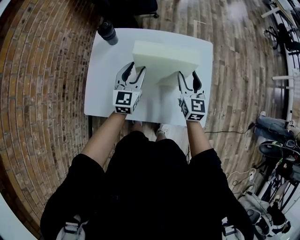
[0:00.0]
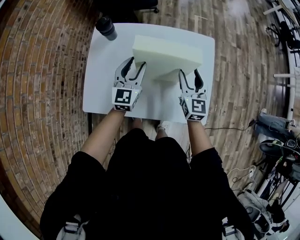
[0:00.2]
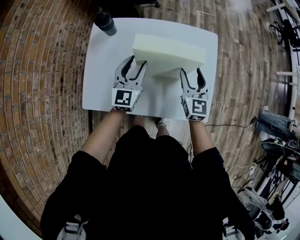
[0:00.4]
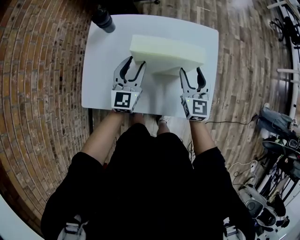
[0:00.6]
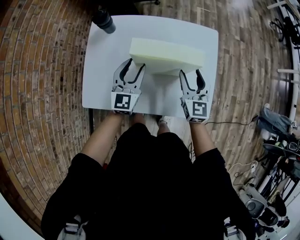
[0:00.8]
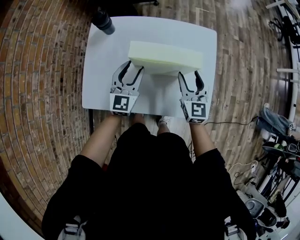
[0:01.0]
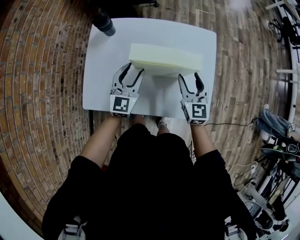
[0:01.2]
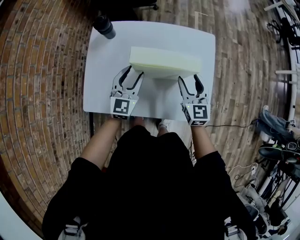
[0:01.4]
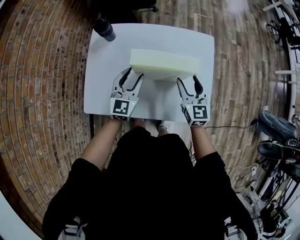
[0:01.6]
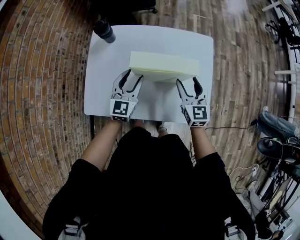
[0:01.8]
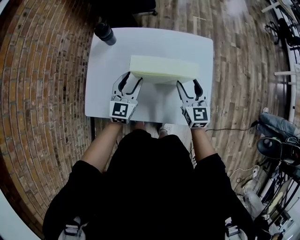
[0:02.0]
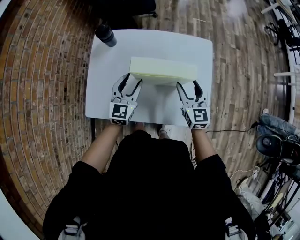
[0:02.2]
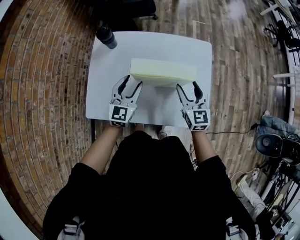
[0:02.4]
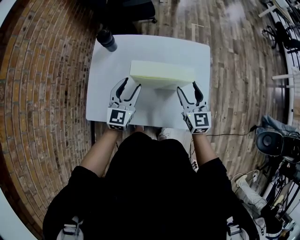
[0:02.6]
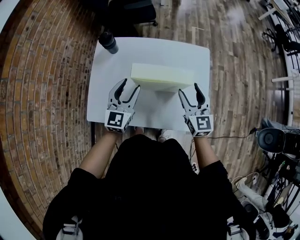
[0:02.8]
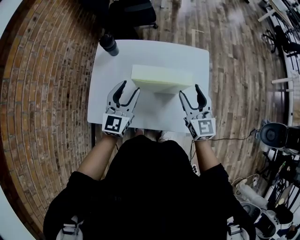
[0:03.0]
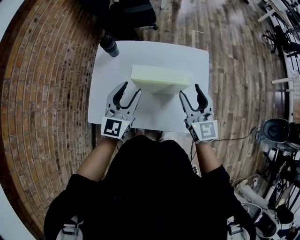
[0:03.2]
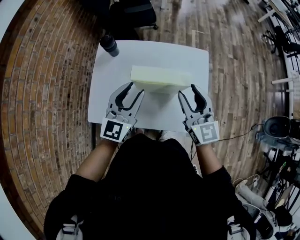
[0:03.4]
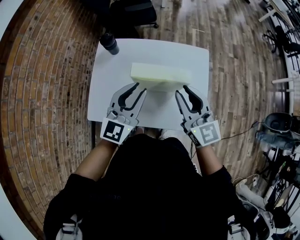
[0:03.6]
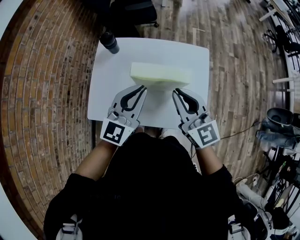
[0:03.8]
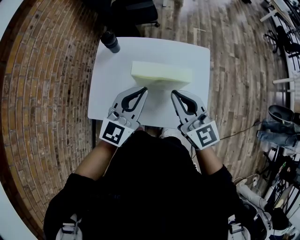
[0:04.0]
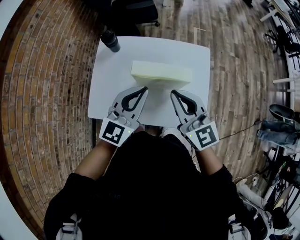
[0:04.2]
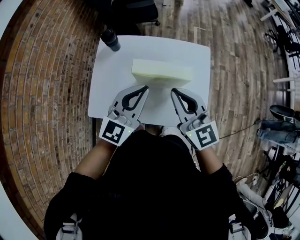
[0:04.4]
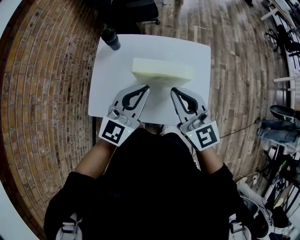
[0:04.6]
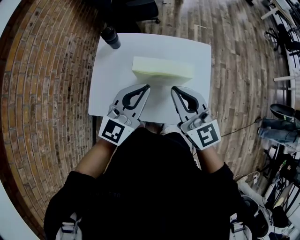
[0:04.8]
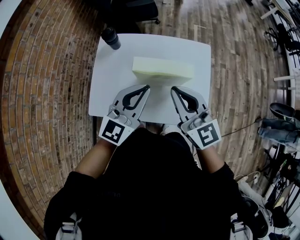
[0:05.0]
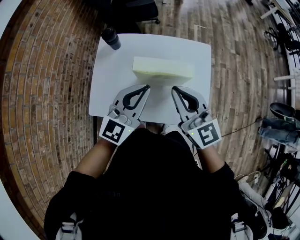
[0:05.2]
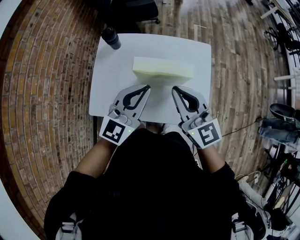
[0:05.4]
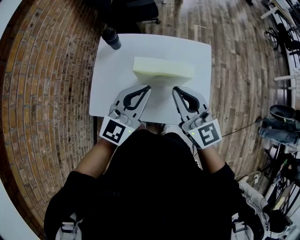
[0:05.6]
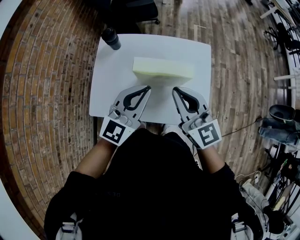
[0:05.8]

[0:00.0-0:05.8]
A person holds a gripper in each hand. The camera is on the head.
0:00.0 to 0:01.4: The grippers make only small movements.
0:01.4 to 0:02.8: The left gripper shifts by some 5 cm. Meanwhile the right gripper is displaced upward by some 5 cm.
0:02.8 to 0:04.4: The left gripper travels upward, to the right and backward by some 15 cm, and closes. Meanwhile the right gripper shifts roughly 15 cm upward and to the left, swivels approximately 20 degrees, and closes.
0:04.4 to 0:05.8: The two grippers keep their place.

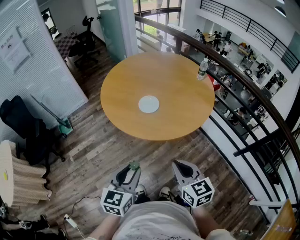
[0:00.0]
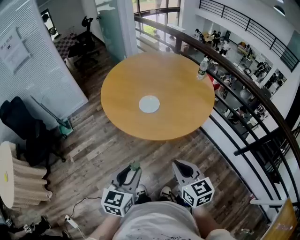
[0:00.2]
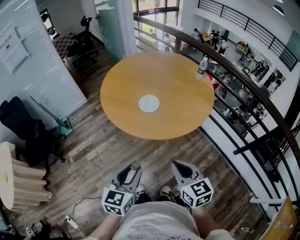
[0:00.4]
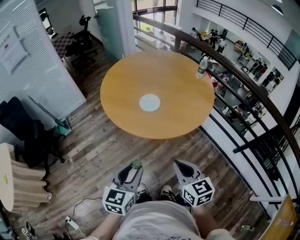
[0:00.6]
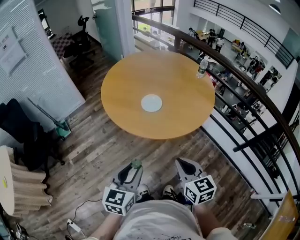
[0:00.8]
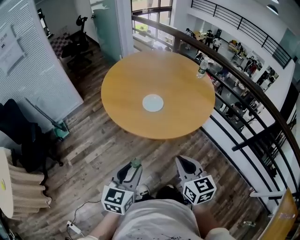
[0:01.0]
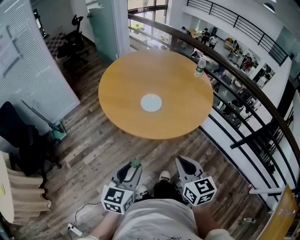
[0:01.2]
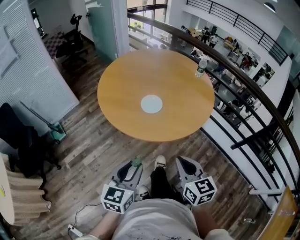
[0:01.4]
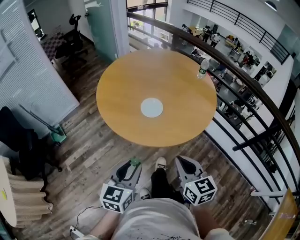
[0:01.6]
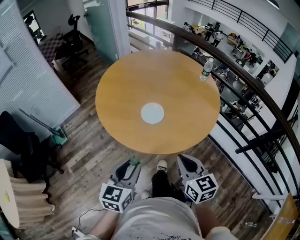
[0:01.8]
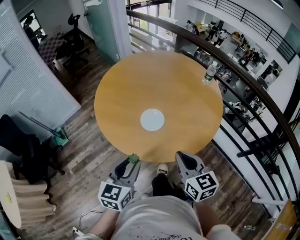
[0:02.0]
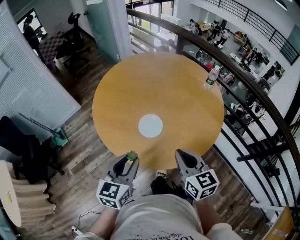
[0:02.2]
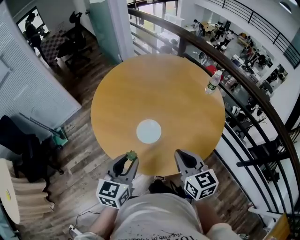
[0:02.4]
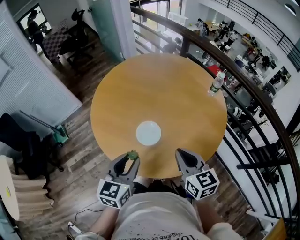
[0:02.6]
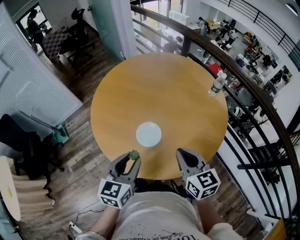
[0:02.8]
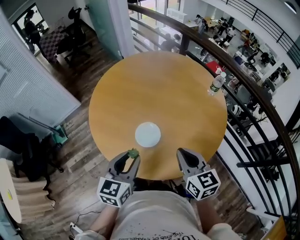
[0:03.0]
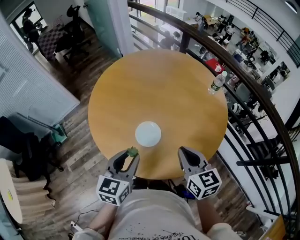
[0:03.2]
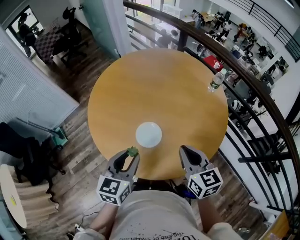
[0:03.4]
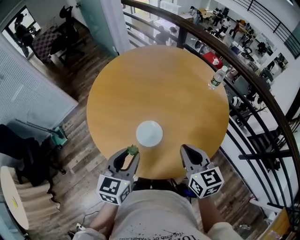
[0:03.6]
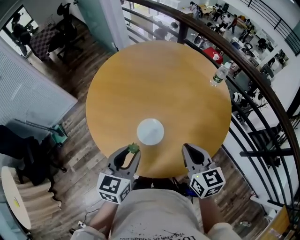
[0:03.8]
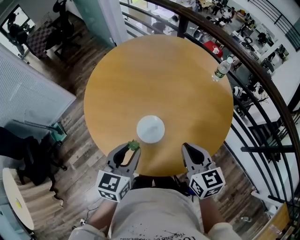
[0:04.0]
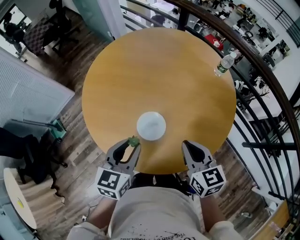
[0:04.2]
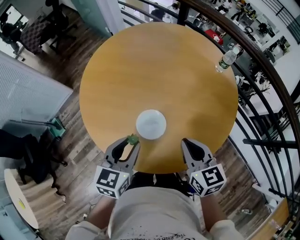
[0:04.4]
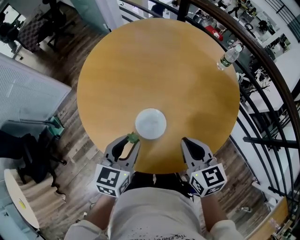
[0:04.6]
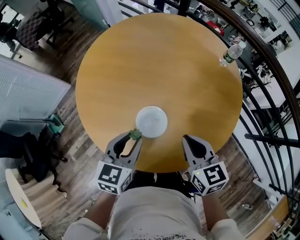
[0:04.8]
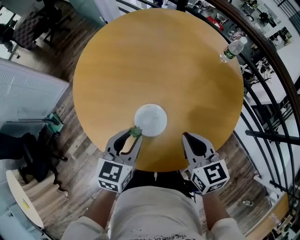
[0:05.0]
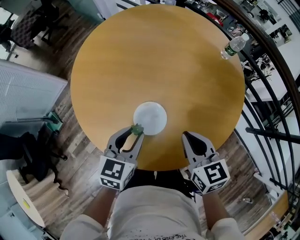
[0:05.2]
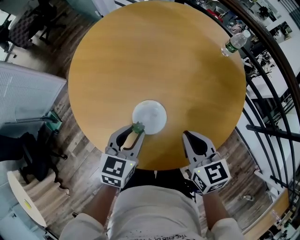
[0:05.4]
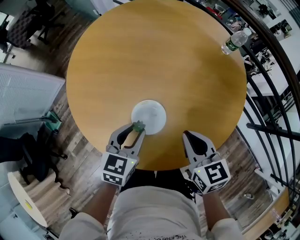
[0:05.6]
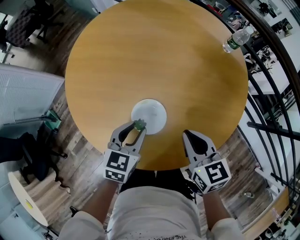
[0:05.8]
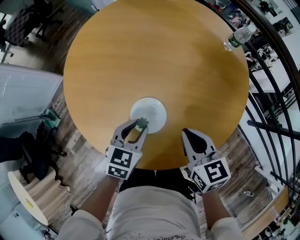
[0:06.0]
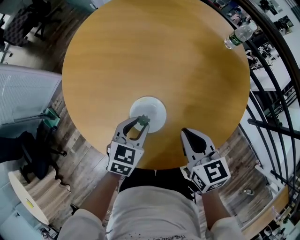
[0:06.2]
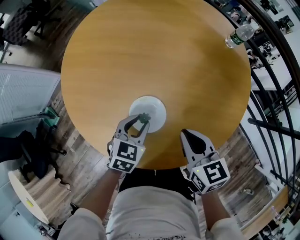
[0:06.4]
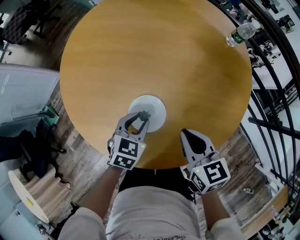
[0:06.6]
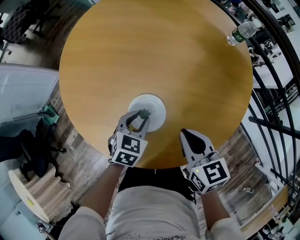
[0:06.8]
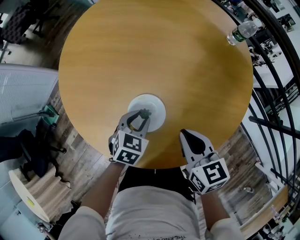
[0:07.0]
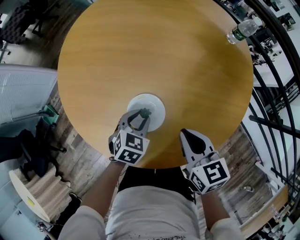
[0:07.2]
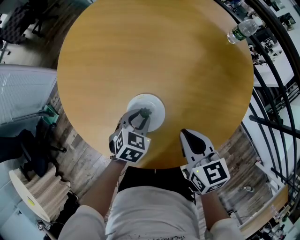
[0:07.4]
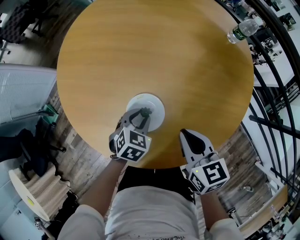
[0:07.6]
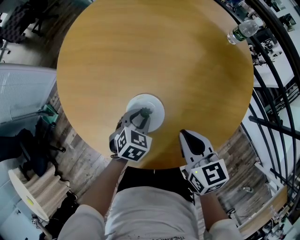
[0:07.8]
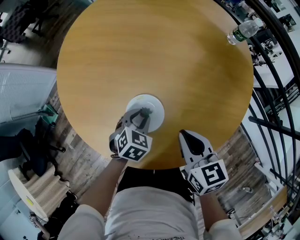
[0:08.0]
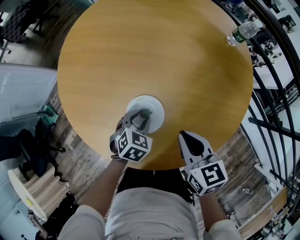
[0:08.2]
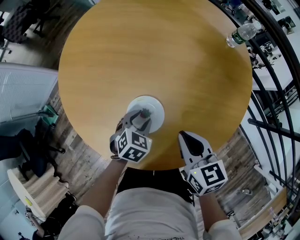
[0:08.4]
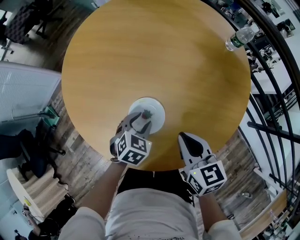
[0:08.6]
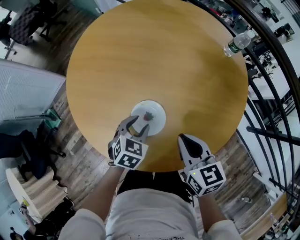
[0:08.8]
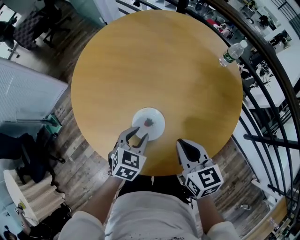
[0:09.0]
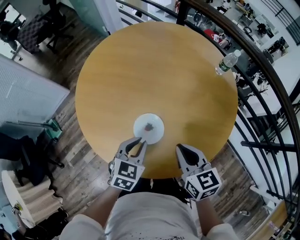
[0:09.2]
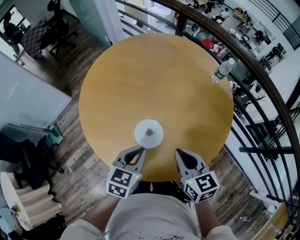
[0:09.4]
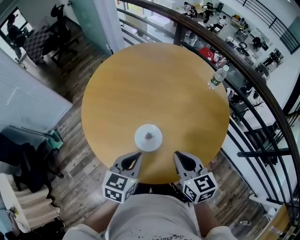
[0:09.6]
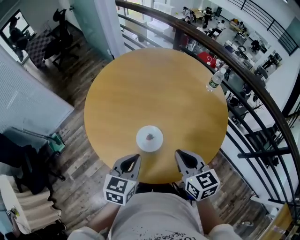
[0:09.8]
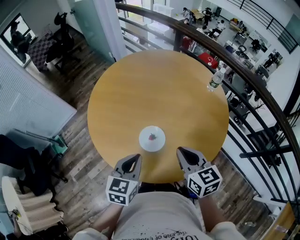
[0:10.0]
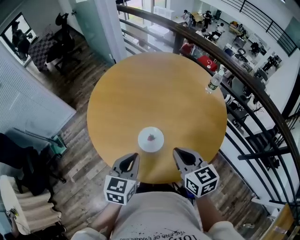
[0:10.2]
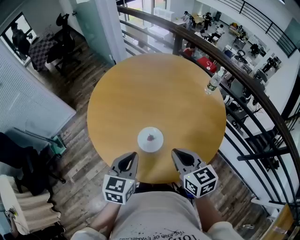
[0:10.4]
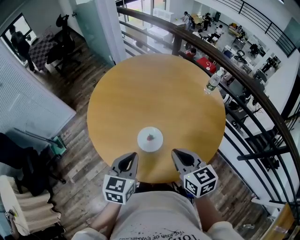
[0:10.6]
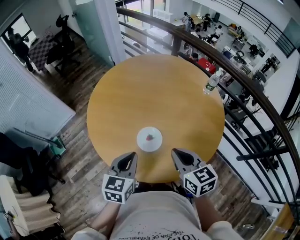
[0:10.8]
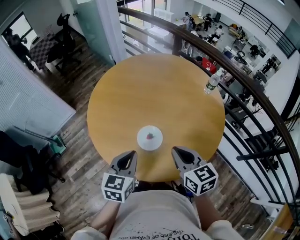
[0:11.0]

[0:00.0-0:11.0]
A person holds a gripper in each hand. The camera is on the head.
0:00.0 to 0:01.6: The grippers both shift forward and to the left by roughly 10 cm.
0:01.6 to 0:03.2: Both grippers move forward, about 25 cm.
0:03.2 to 0:04.8: The right gripper moves downward and forward, roughly 10 cm; the left gripper goes about 10 cm forward and downward.
0:04.8 to 0:06.2: The right gripper goes approximately 5 cm downward; the left gripper goes roughly 10 cm downward.
0:06.2 to 0:07.8: The left gripper travels downward by about 10 cm.
0:07.8 to 0:09.4: The left gripper shifts about 20 cm upward, turns by roughly 30 degrees, and closes its fingers. Meanwhile the right gripper goes about 10 cm upward.
0:09.4 to 0:11.0: The two grippers go some 5 cm upward.

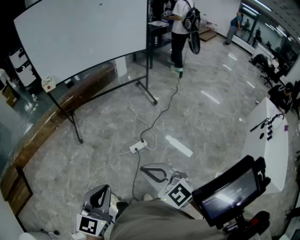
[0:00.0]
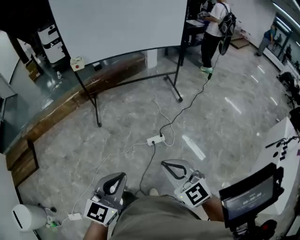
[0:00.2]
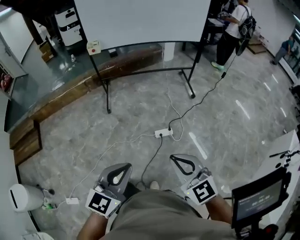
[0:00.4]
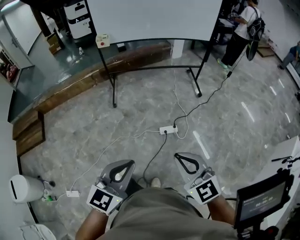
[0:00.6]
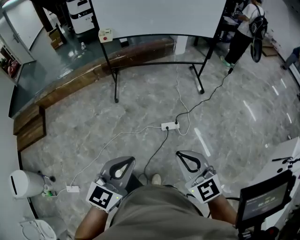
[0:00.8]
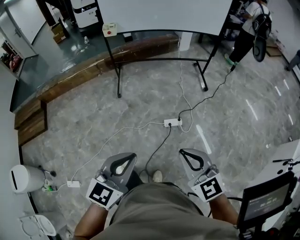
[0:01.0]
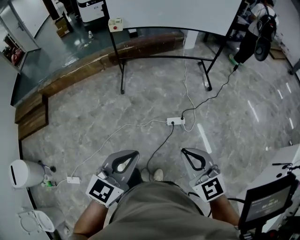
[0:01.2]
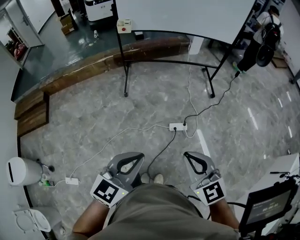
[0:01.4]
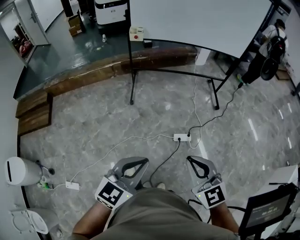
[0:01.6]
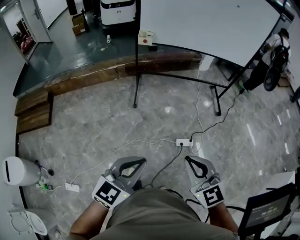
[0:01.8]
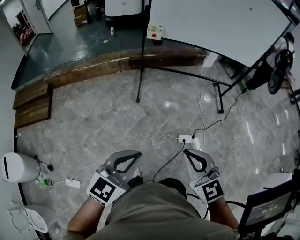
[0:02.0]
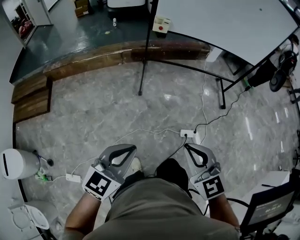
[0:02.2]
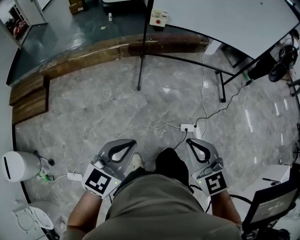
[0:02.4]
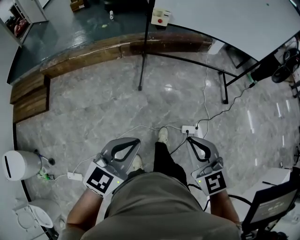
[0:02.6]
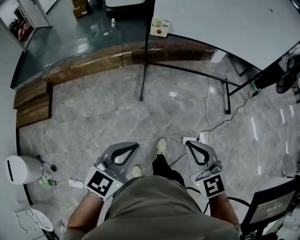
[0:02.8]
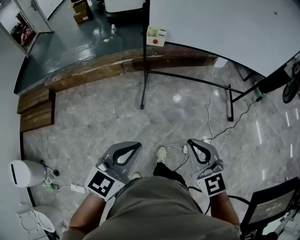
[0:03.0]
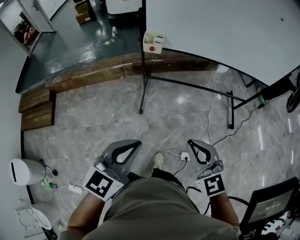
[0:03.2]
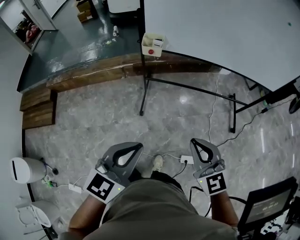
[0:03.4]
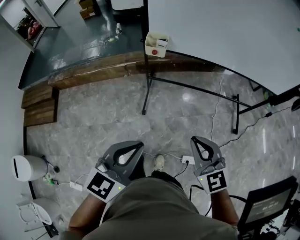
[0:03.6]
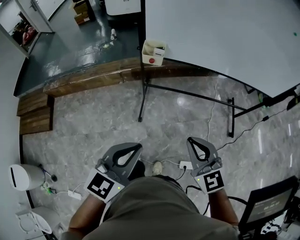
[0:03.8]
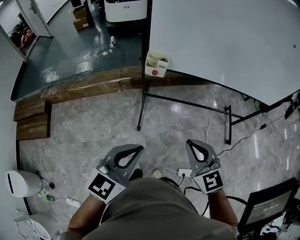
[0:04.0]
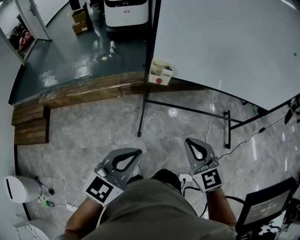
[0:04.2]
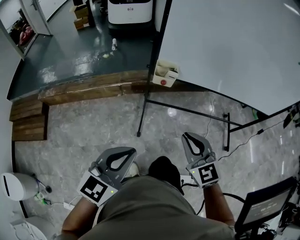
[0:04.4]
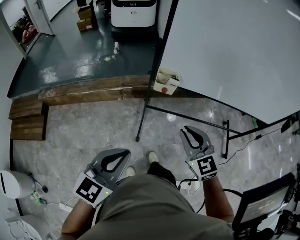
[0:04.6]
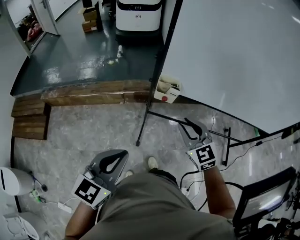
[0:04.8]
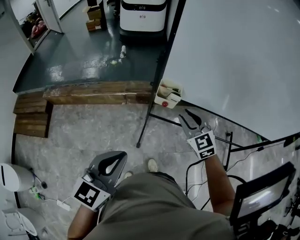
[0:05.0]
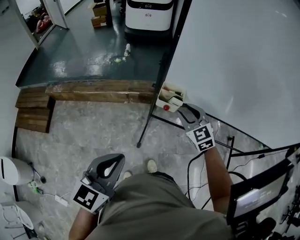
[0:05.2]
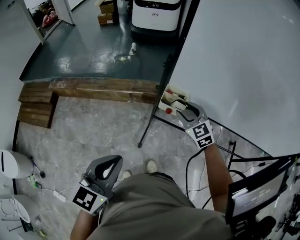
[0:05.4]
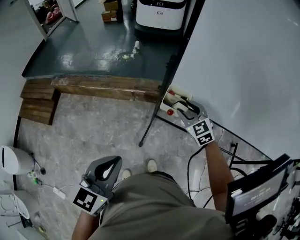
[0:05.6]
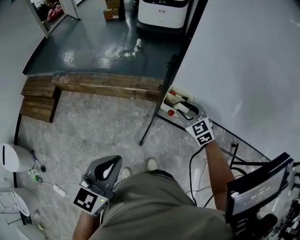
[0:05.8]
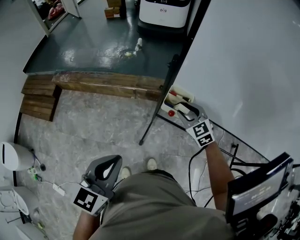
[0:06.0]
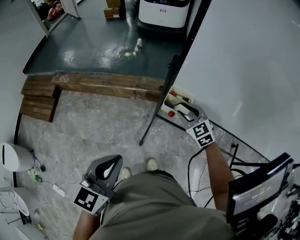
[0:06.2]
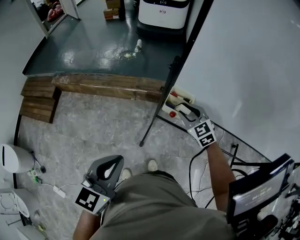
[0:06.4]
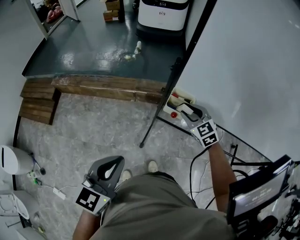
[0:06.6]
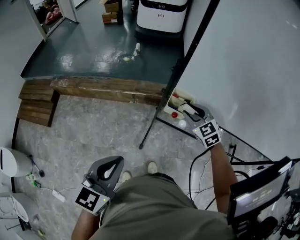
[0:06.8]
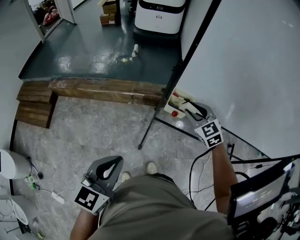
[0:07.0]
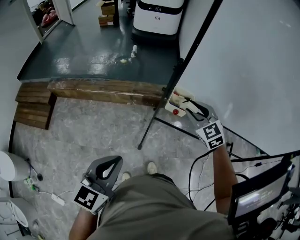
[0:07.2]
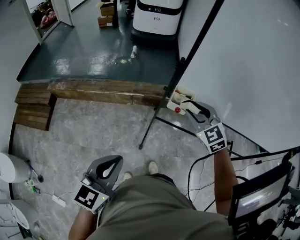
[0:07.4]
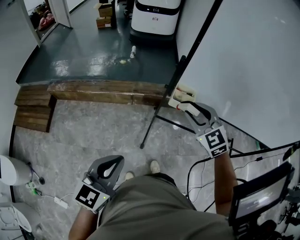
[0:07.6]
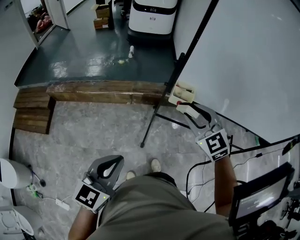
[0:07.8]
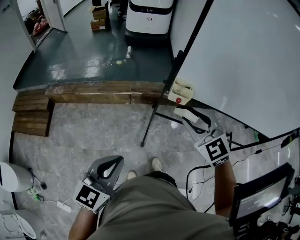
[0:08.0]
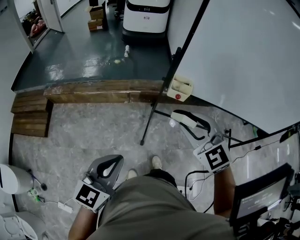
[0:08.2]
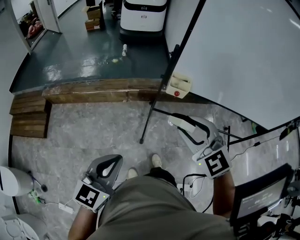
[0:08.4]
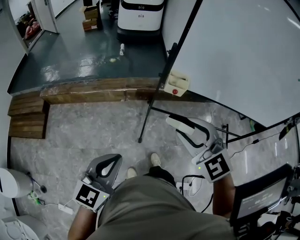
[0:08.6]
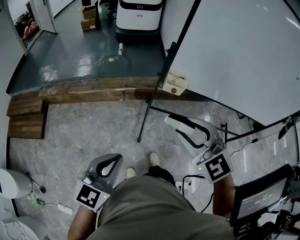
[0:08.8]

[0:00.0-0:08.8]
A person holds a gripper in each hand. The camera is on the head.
0:00.0 to 0:01.4: Both grippers travel together to the left, roughly 10 cm.
0:01.4 to 0:03.0: Both grippers move forward and to the left, approximately 40 cm.
0:03.0 to 0:04.4: Both grippers travel together forward, roughly 25 cm.
0:04.4 to 0:05.8: The left gripper shifts some 10 cm forward, and changes its angle by about 30 degrees. The right gripper travels forward by about 35 cm, rotates some 30 degrees, and opens up.
0:05.8 to 0:07.4: The left gripper travels to the left by approximately 10 cm, while the right gripper moves upward and backward, about 15 cm.
0:07.4 to 0:08.8: The right gripper goes about 25 cm backward and to the left; the left gripper shifts roughly 10 cm backward.
